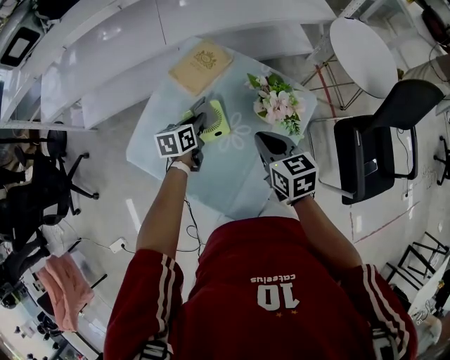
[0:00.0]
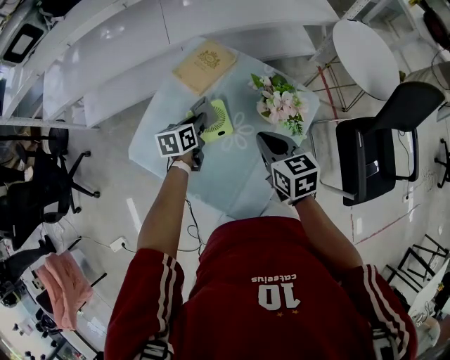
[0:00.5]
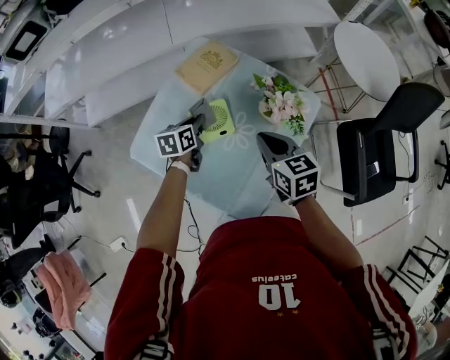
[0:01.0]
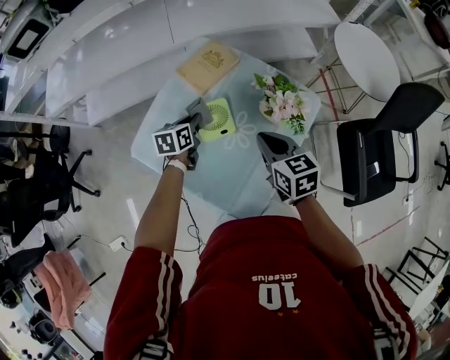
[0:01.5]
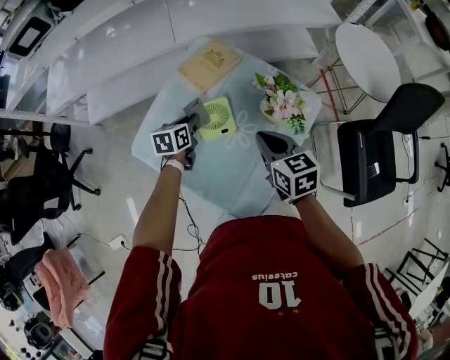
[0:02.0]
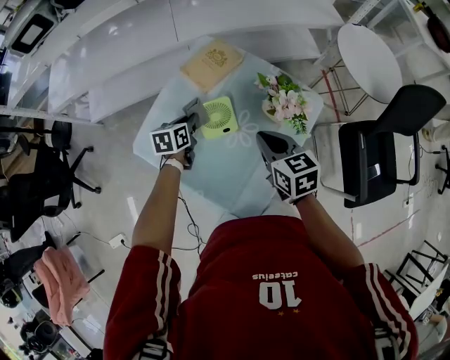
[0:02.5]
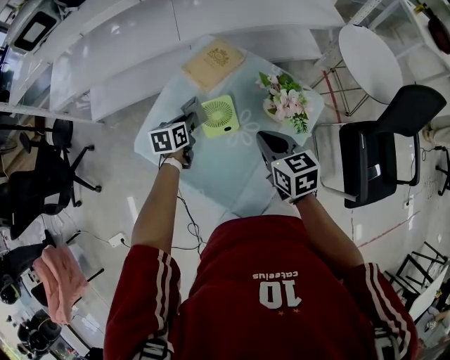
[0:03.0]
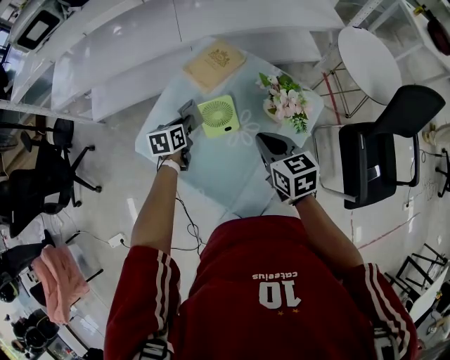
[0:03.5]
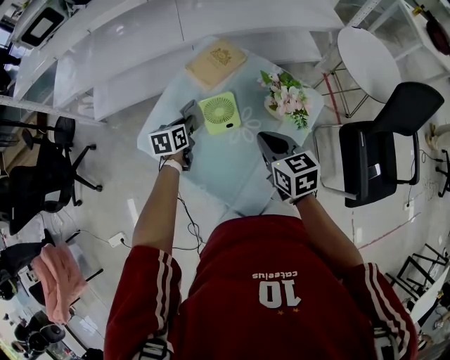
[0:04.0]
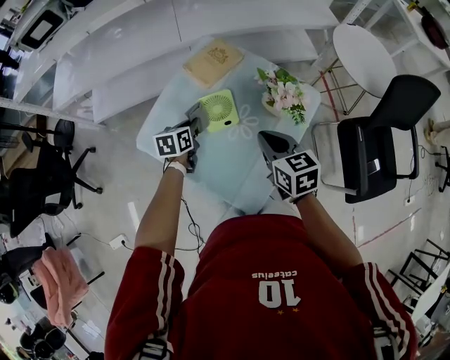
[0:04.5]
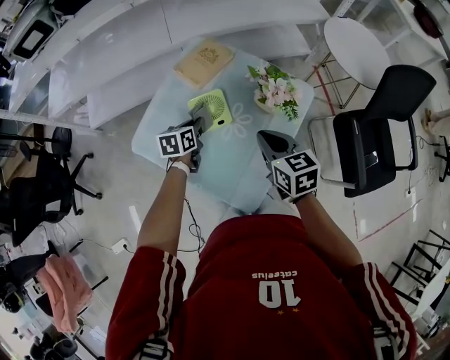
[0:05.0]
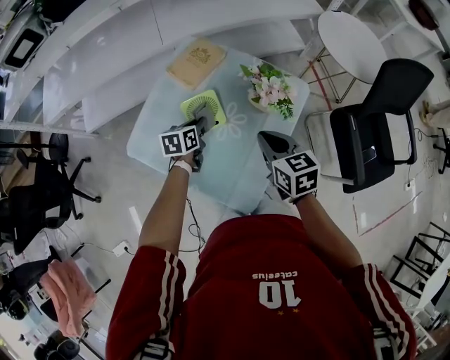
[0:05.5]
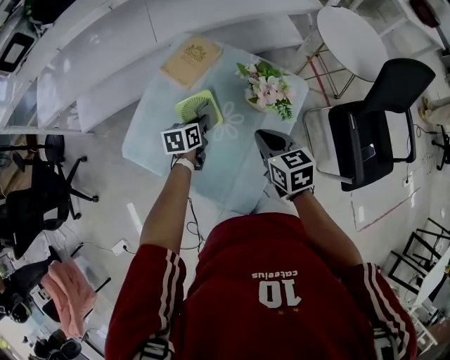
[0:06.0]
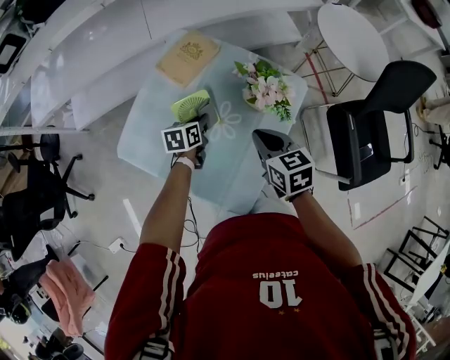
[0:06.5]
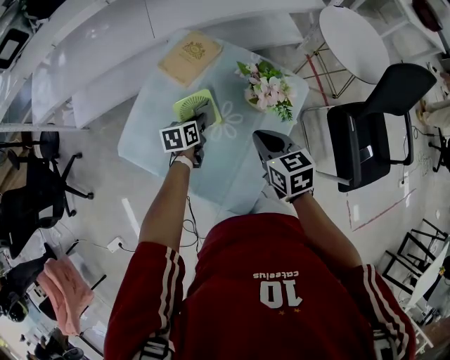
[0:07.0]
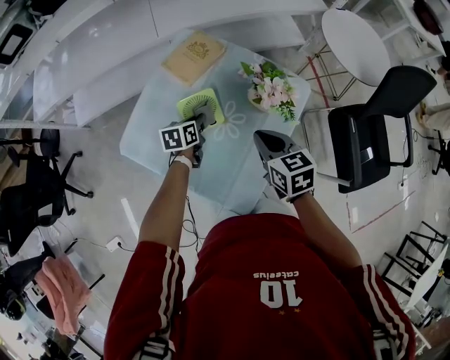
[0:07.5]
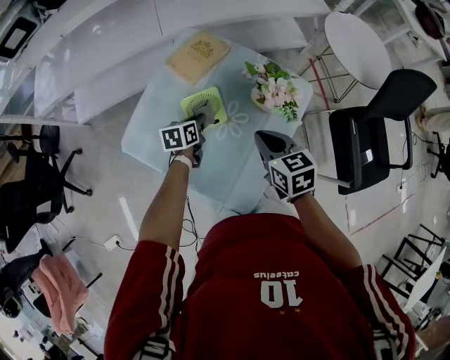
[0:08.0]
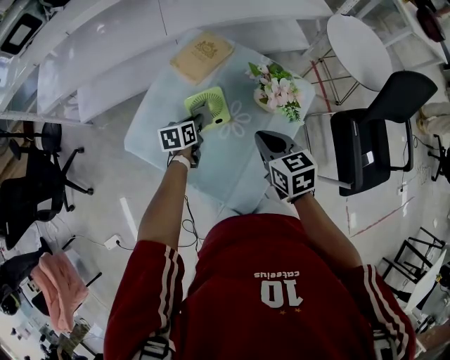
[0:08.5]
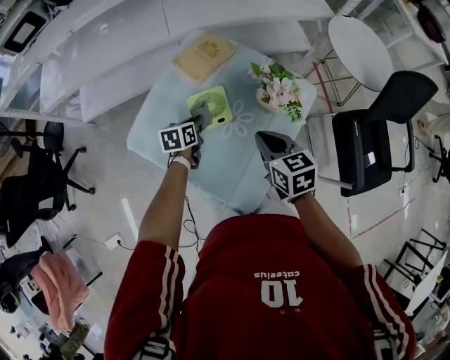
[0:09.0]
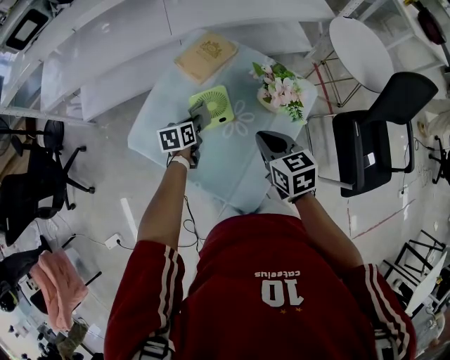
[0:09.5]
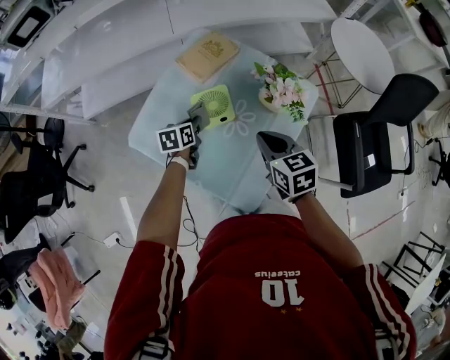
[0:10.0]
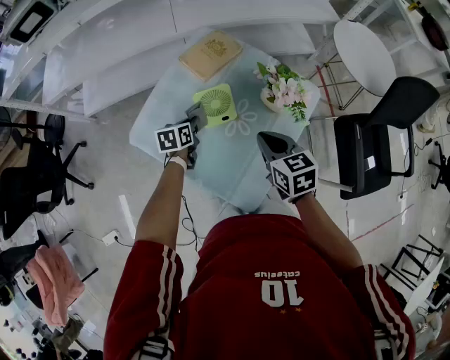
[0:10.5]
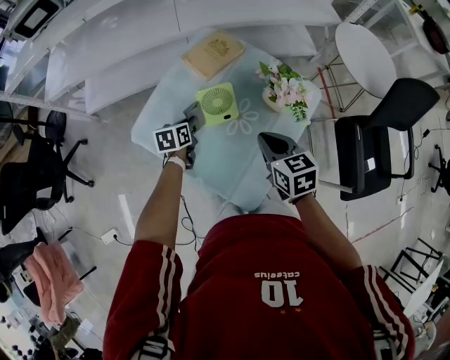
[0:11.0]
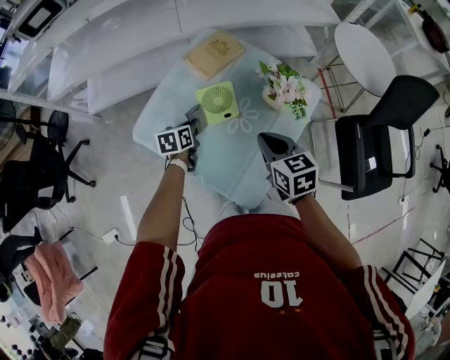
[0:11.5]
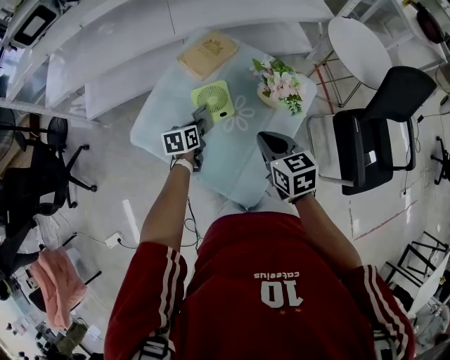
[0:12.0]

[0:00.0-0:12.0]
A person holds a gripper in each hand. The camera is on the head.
0:00.0 to 0:02.0: The left gripper goes about 5 cm to the left.
0:02.0 to 0:04.0: The grippers make only small movements.
0:04.0 to 0:06.0: The left gripper is displaced to the right by roughly 10 cm. The right gripper shifts some 5 cm to the right.
0:06.0 to 0:08.0: The grippers stay close to where they were, moving slightly.
0:08.0 to 0:10.0: The left gripper shifts by some 5 cm.
0:10.0 to 0:12.0: There are only small adjustments of the grippers.

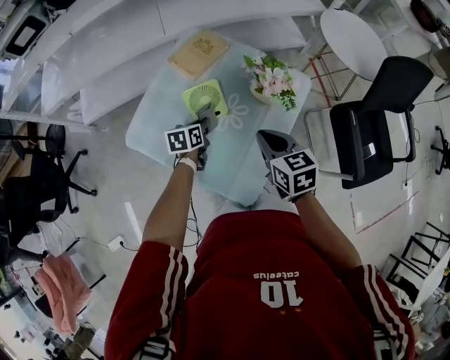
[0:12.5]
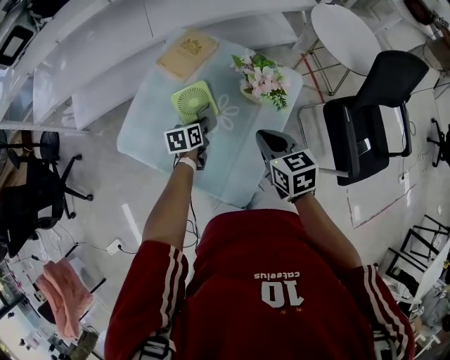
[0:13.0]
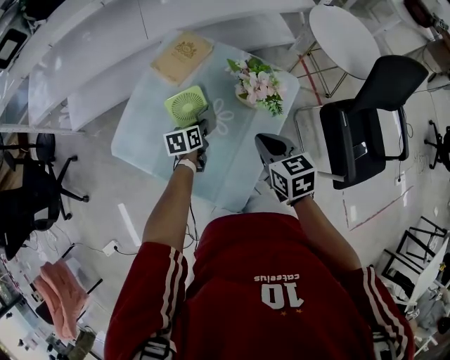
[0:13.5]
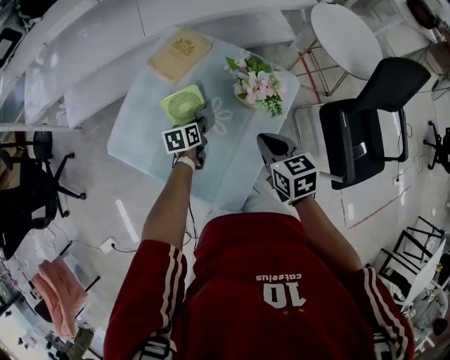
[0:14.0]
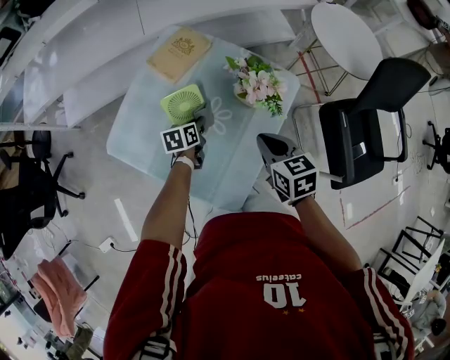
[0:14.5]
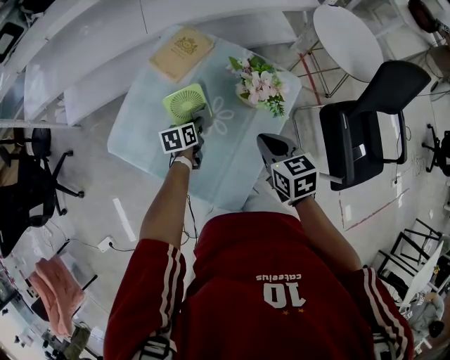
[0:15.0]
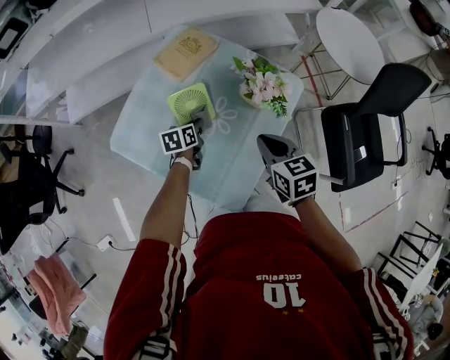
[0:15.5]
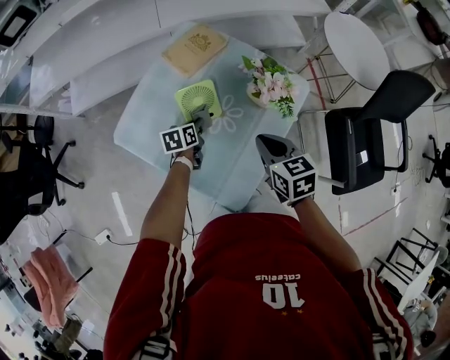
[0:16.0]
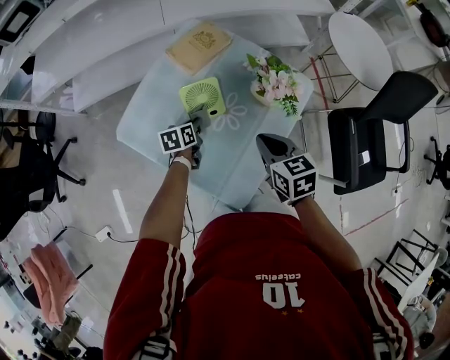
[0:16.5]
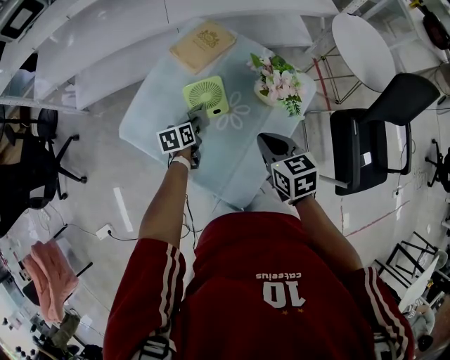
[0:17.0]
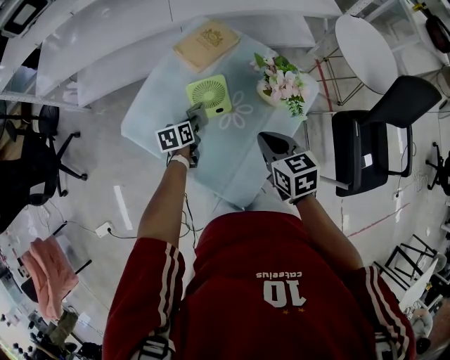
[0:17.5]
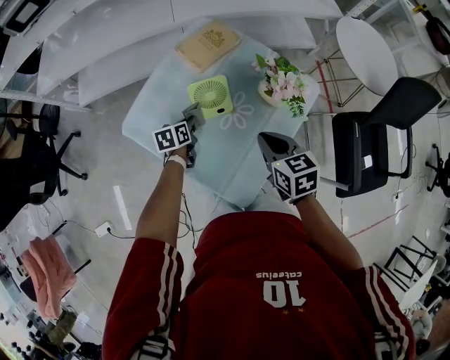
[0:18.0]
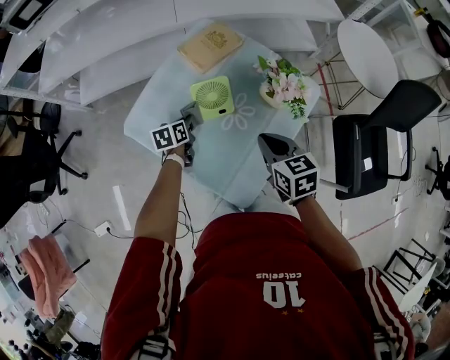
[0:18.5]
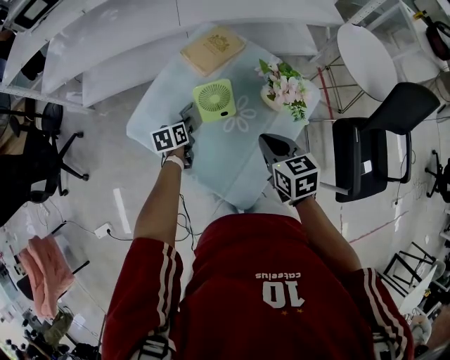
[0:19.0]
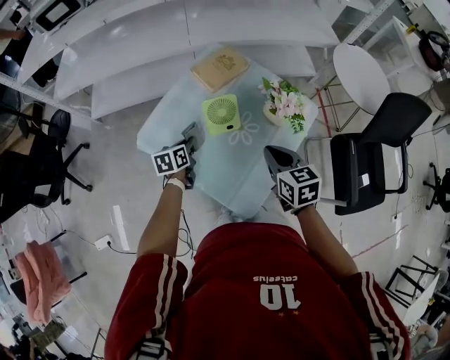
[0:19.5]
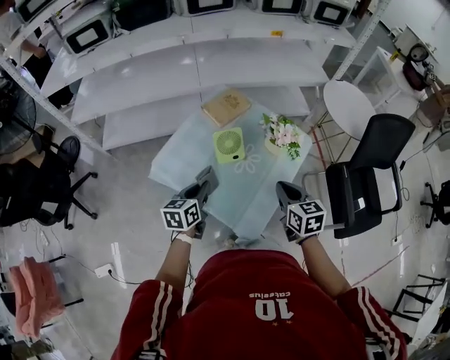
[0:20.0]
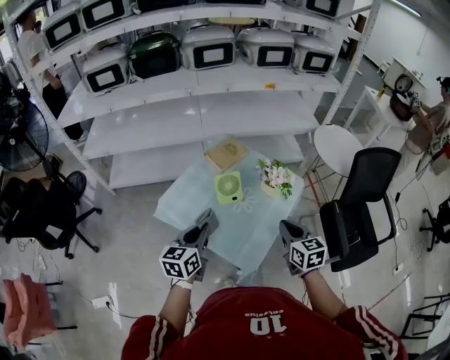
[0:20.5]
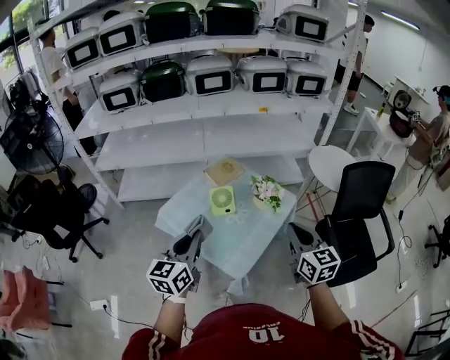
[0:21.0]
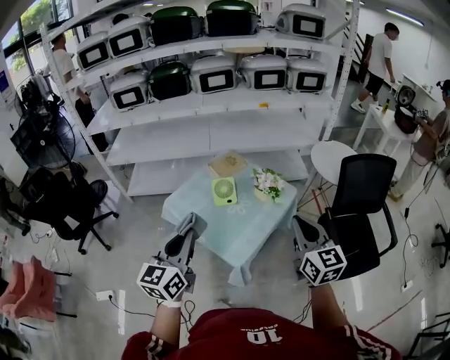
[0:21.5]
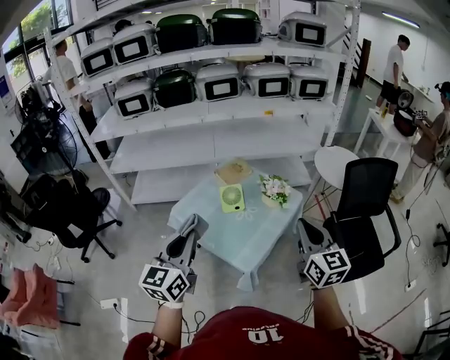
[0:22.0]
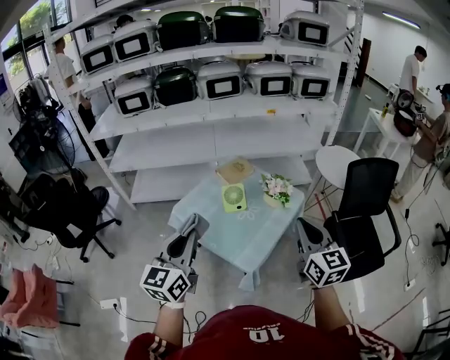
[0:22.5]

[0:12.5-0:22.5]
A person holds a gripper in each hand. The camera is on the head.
0:12.5 to 0:14.5: The right gripper moves to the right, roughly 5 cm, while the left gripper shifts by approximately 5 cm.
0:14.5 to 0:16.5: Both grippers move to the left, some 5 cm.
0:16.5 to 0:18.5: The left gripper heads to the left, covering some 5 cm.
0:18.5 to 0:20.5: The right gripper shifts some 20 cm upward and backward, while the left gripper moves upward and backward, some 35 cm, and turns by approximately 30 degrees.
0:20.5 to 0:22.5: Both grippers travel together upward and backward, some 25 cm. The left gripper rotates about 30 degrees. The right gripper swivels approximately 20 degrees.

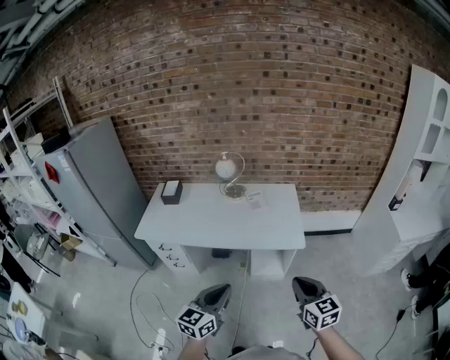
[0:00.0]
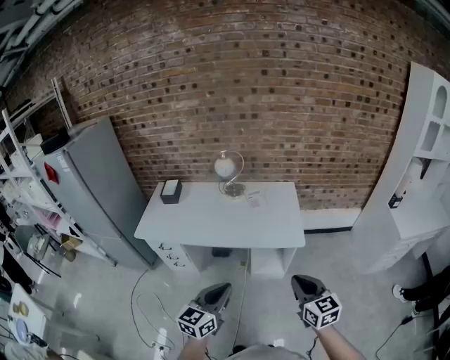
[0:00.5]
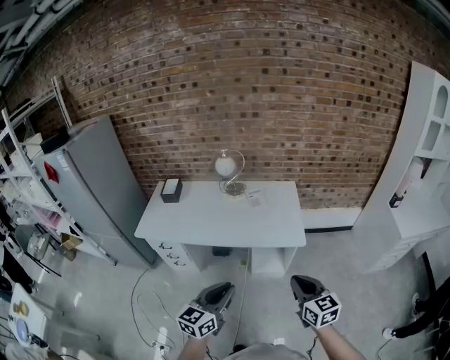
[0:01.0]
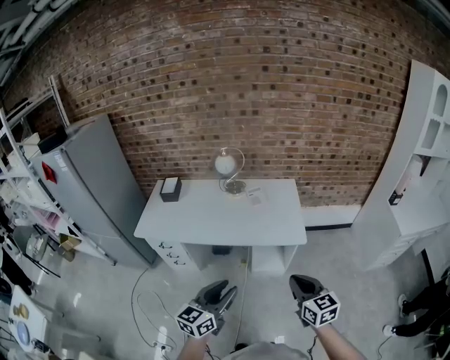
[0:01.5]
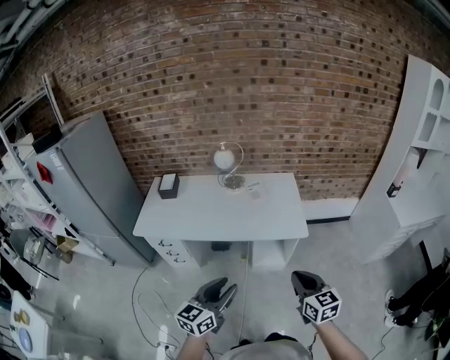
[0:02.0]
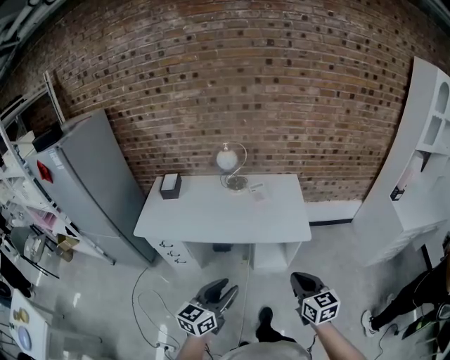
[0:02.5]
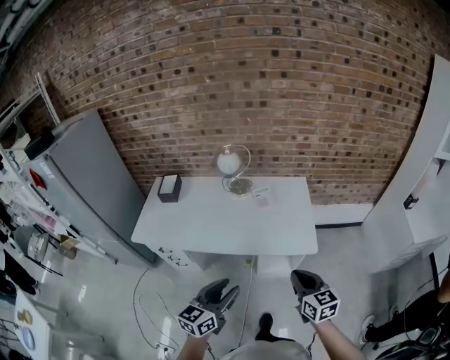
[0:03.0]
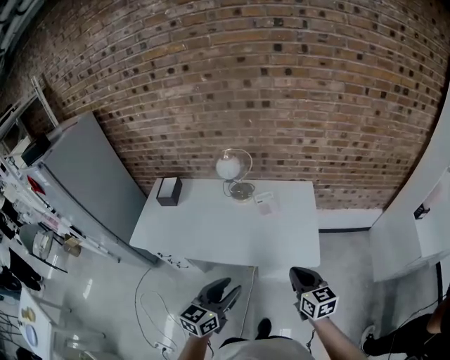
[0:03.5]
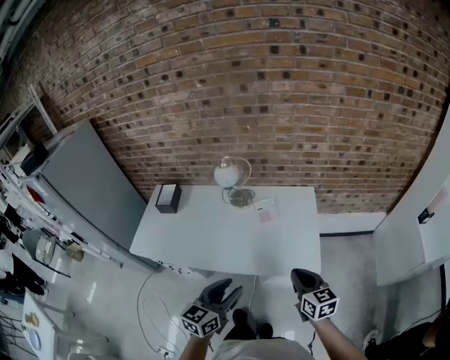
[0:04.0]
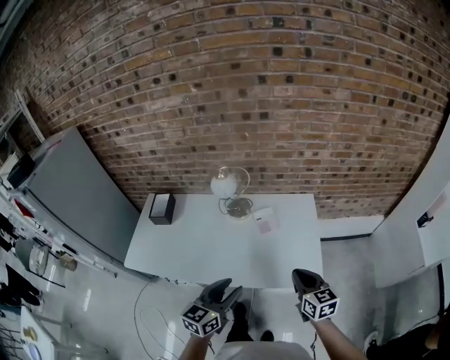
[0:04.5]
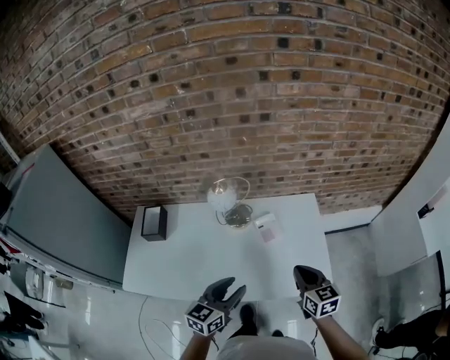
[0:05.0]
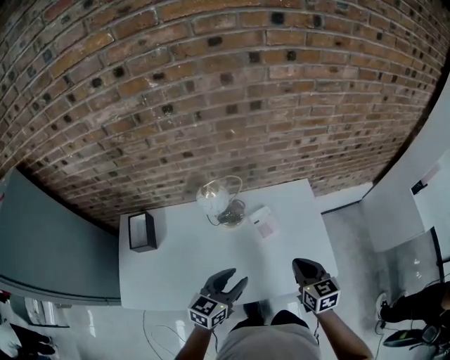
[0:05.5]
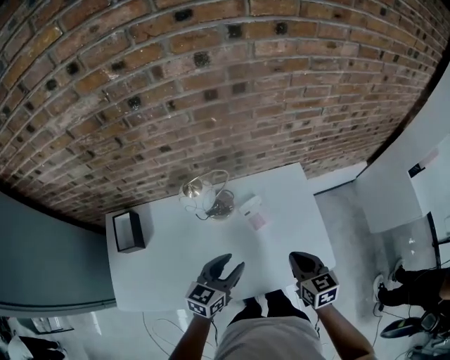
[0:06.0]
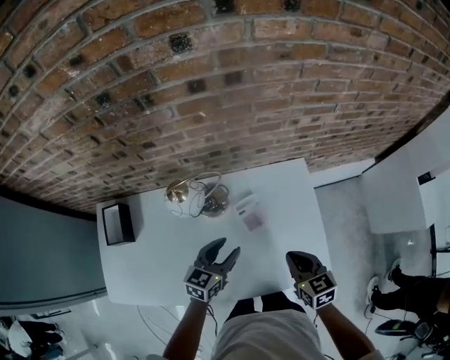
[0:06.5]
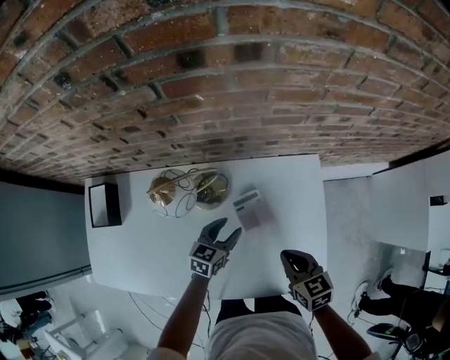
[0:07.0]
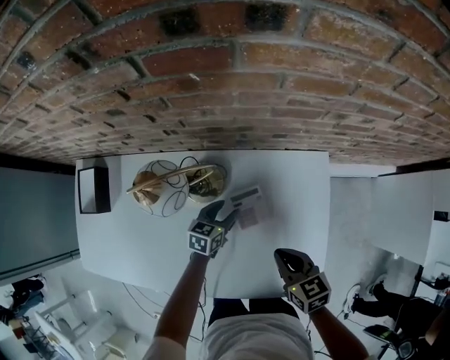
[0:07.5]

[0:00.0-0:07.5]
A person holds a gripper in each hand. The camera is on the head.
0:00.0 to 0:02.0: The left gripper opens.
0:02.0 to 0:04.0: Both grippers move forward, roughly 30 cm.
0:04.0 to 0:05.5: The grippers both shift forward and to the left by roughly 25 cm. The left gripper swivels roughly 20 degrees.
0:05.5 to 0:07.5: The left gripper travels downward and forward by some 40 cm, and rotates some 30 degrees; the right gripper travels downward and forward by approximately 25 cm, and swivels roughly 30 degrees.
